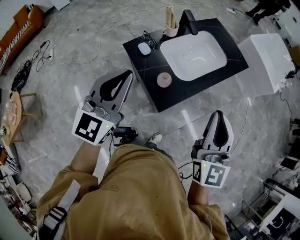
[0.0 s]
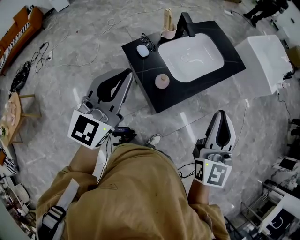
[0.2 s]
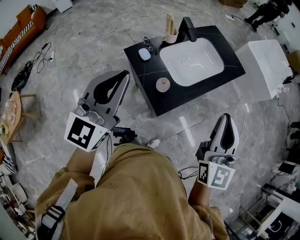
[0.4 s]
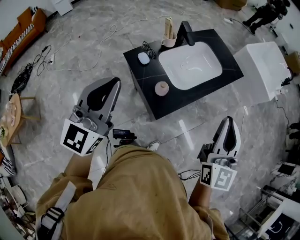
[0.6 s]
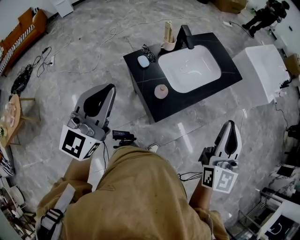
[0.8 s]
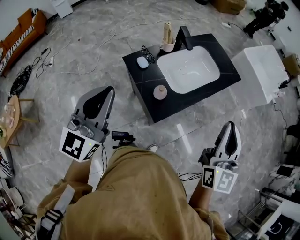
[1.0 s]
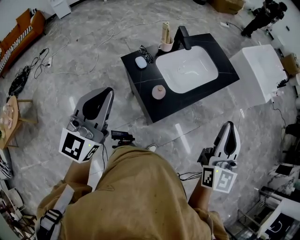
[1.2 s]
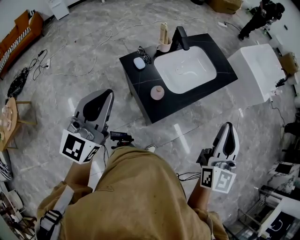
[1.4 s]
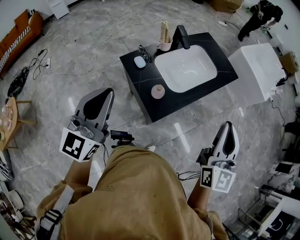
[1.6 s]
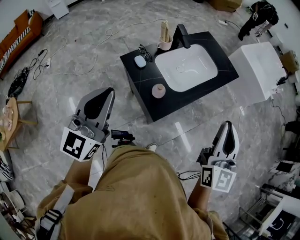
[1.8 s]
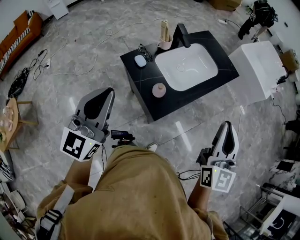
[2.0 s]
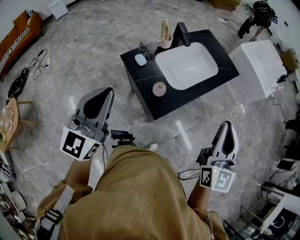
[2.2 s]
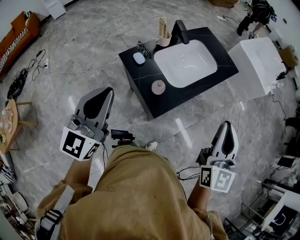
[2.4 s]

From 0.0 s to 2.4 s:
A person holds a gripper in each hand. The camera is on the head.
From 0.0 s to 1.2 s: The right gripper shifts roughly 5 cm to the right; the left gripper shifts by about 5 cm.
From 1.2 s to 2.4 s: The grippers move only a little.

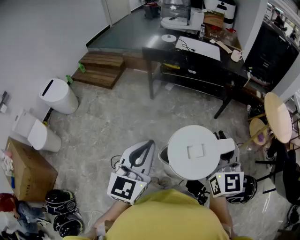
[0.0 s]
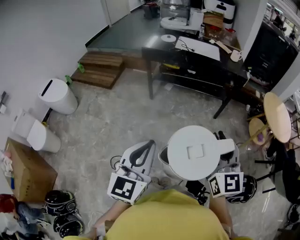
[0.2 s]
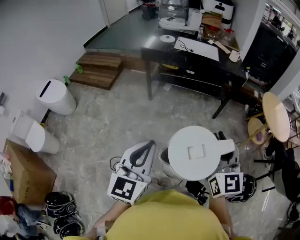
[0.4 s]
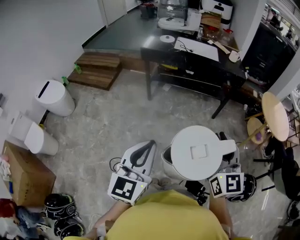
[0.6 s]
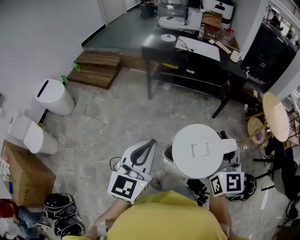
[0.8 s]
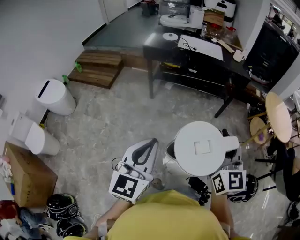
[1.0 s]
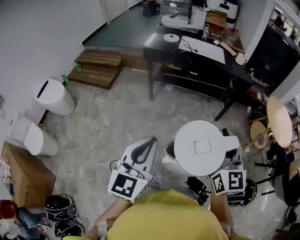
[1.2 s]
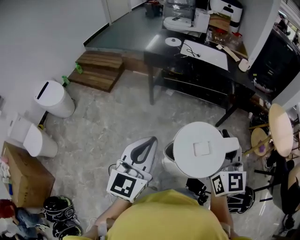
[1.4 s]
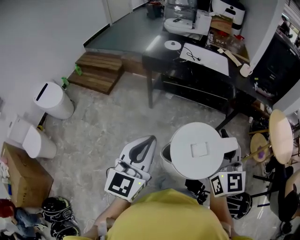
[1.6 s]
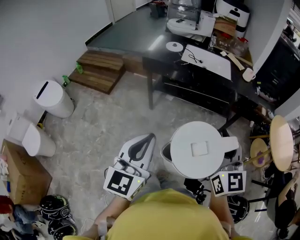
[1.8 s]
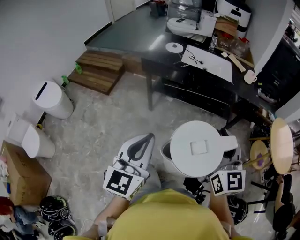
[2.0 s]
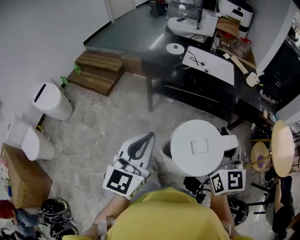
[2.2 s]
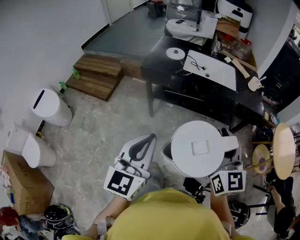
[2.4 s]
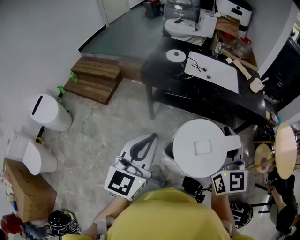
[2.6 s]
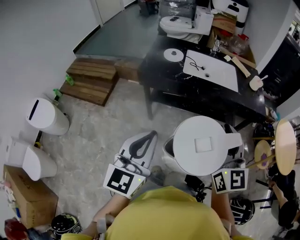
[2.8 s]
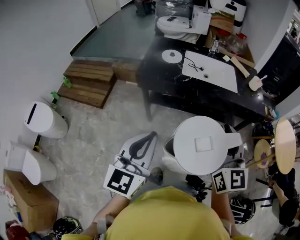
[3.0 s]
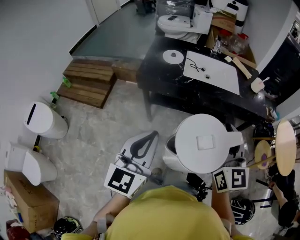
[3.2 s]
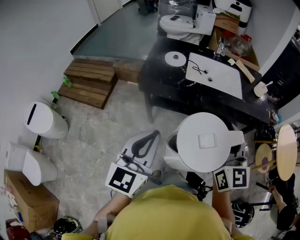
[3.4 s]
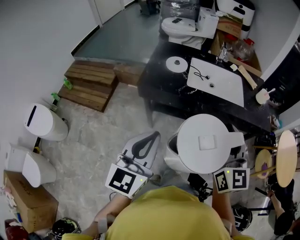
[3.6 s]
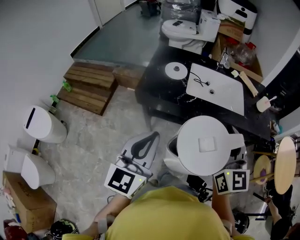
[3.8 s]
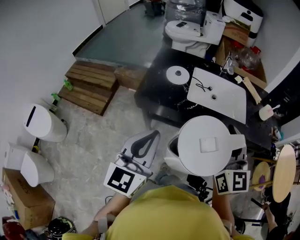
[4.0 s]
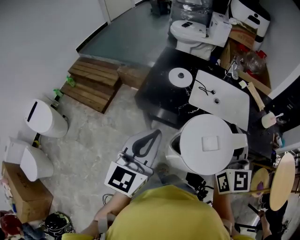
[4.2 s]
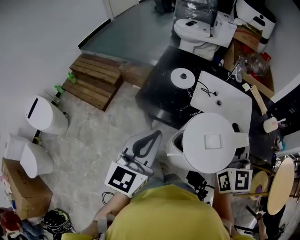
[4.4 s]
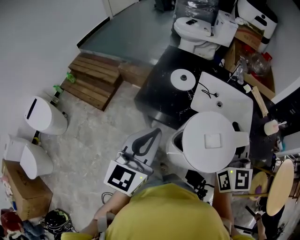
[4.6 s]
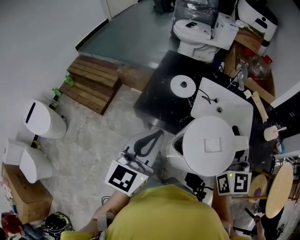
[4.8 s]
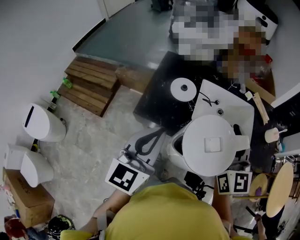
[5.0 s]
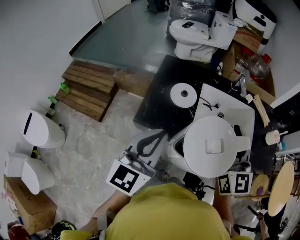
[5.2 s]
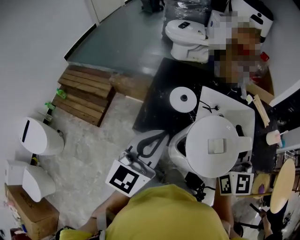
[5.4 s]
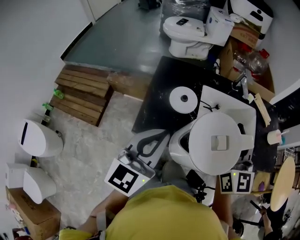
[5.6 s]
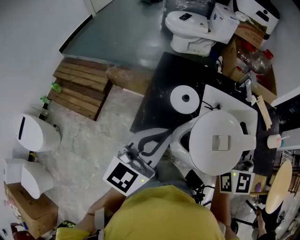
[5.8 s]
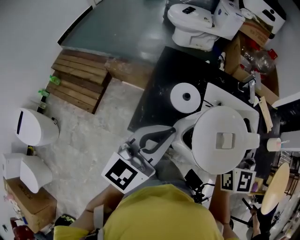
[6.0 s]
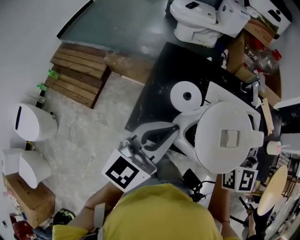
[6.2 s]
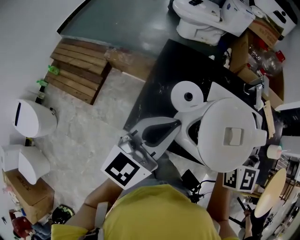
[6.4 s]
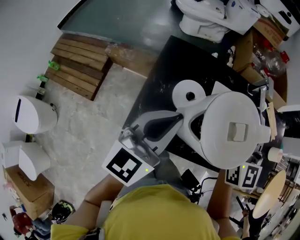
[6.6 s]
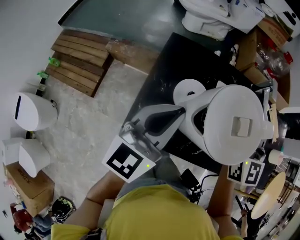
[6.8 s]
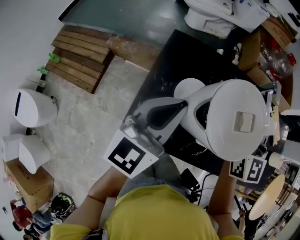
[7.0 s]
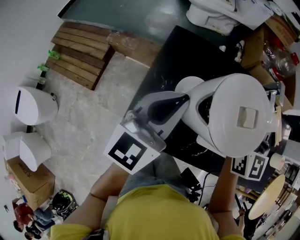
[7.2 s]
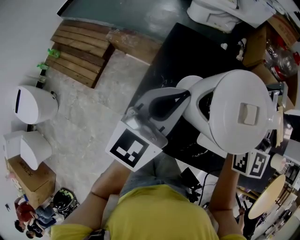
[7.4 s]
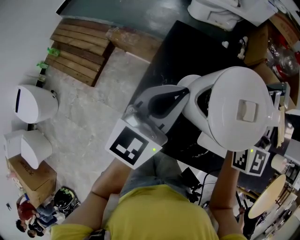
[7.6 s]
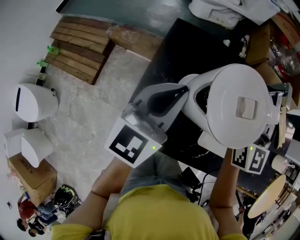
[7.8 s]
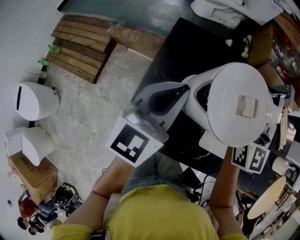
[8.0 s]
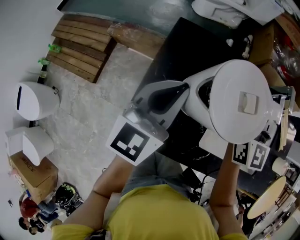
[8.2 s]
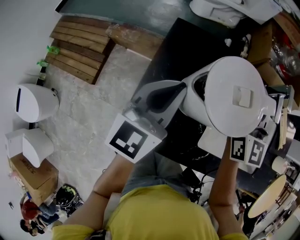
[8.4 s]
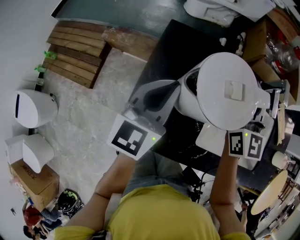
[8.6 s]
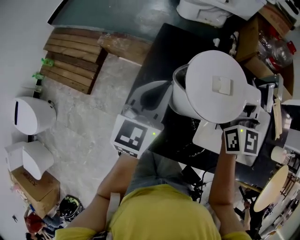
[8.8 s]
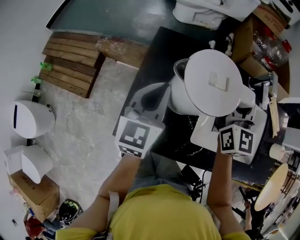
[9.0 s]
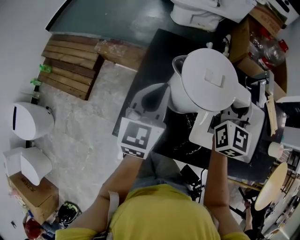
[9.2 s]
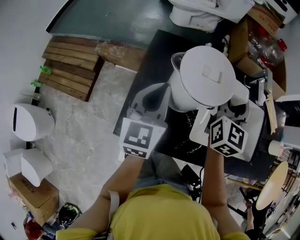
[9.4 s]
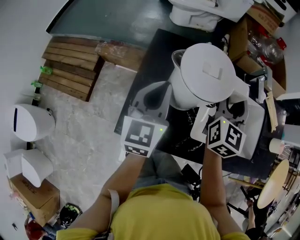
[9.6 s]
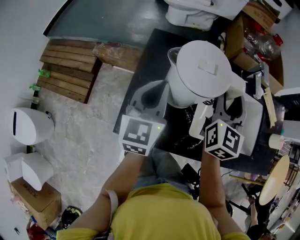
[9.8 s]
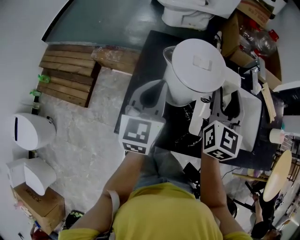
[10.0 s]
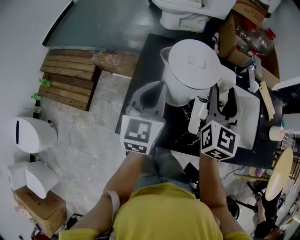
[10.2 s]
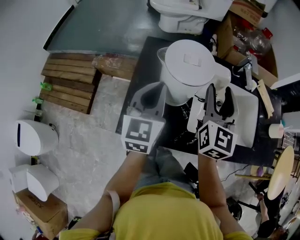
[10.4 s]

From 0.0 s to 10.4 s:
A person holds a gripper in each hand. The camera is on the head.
From 0.0 s to 1.4 s: The two grippers go about 15 cm forward.
From 1.4 s to 3.0 s: The grippers both shift forward by about 30 cm.
From 3.0 s to 4.4 s: The two grippers go approximately 25 cm forward.
From 4.4 s to 6.0 s: The grippers both shift forward by about 20 cm.
From 6.0 s to 7.4 s: The left gripper shifts approximately 15 cm forward and downward. The right gripper heads forward, covering roughly 15 cm.
From 7.4 s to 9.0 s: The grippers both shift downward by some 5 cm. The right gripper opens.
From 9.0 s to 10.4 s: The right gripper travels backward by approximately 10 cm; the left gripper shifts by about 5 cm.

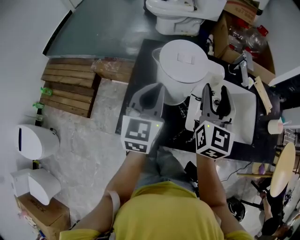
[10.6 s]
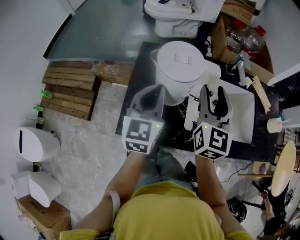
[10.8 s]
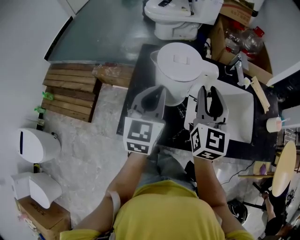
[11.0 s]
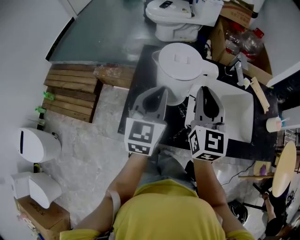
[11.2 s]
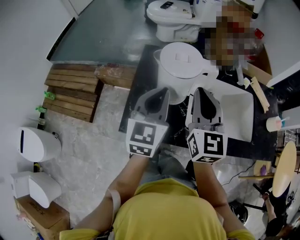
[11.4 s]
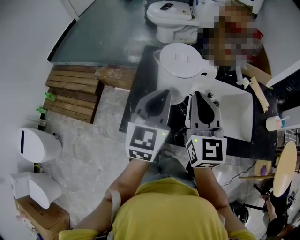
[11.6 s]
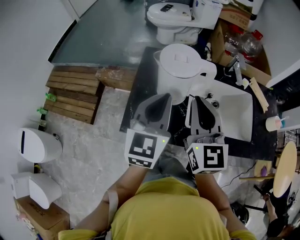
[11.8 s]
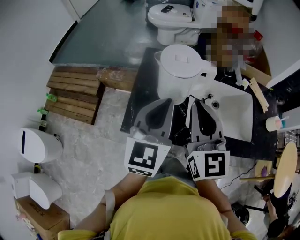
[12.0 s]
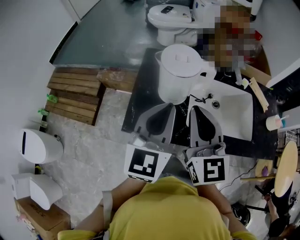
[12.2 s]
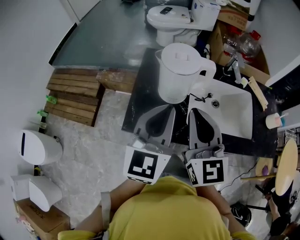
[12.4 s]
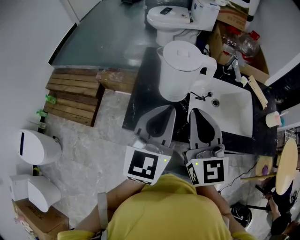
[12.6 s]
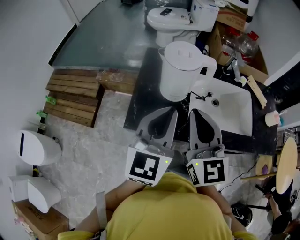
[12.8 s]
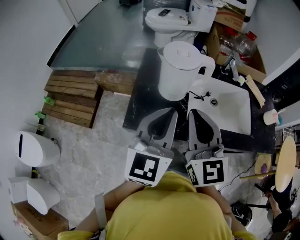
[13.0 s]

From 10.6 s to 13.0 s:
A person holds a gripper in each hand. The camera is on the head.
From 10.6 s to 11.8 s: The right gripper shifts roughly 10 cm backward and to the left, and closes, while the left gripper heads backward and upward, covering roughly 10 cm.
From 11.8 s to 13.0 s: Both grippers travel together backward, some 10 cm.

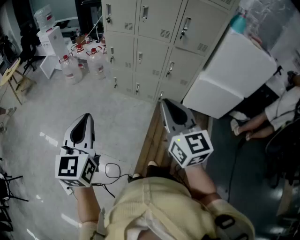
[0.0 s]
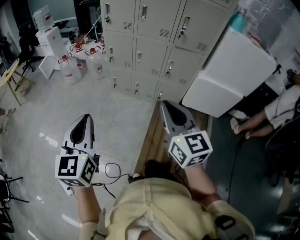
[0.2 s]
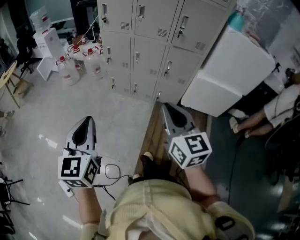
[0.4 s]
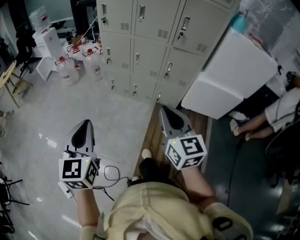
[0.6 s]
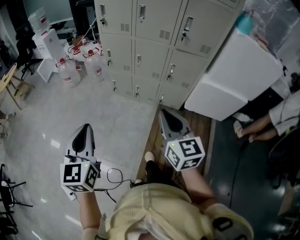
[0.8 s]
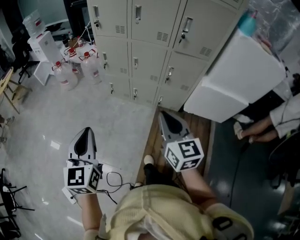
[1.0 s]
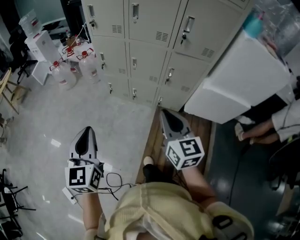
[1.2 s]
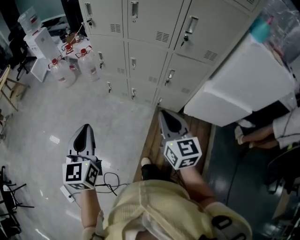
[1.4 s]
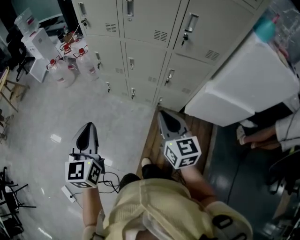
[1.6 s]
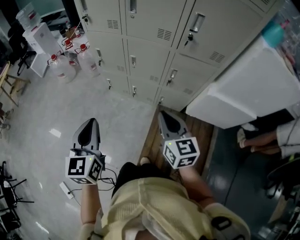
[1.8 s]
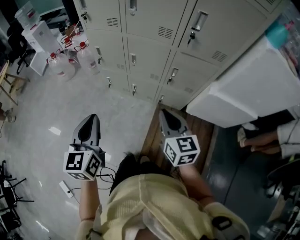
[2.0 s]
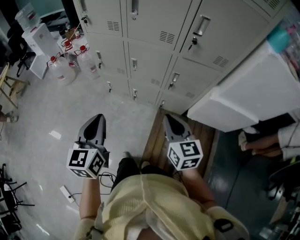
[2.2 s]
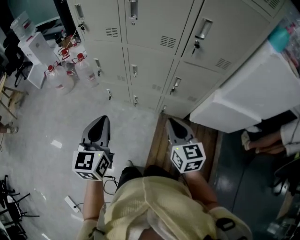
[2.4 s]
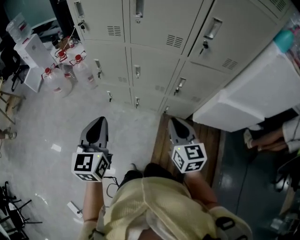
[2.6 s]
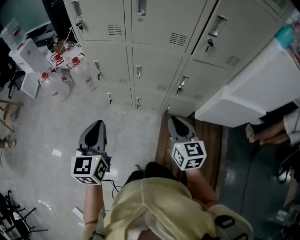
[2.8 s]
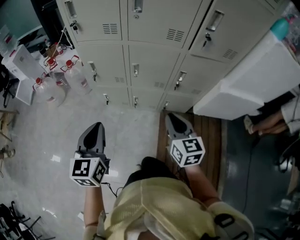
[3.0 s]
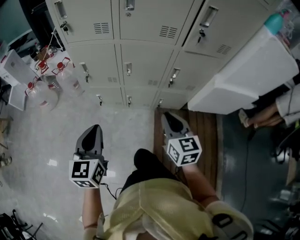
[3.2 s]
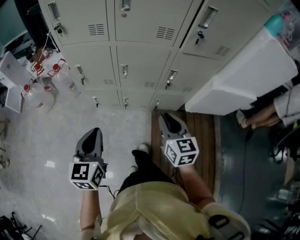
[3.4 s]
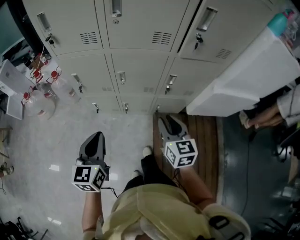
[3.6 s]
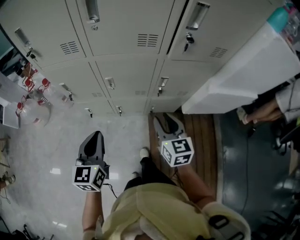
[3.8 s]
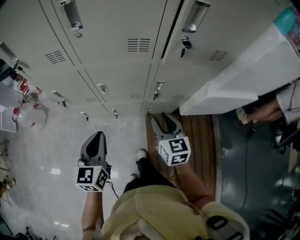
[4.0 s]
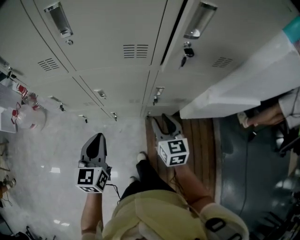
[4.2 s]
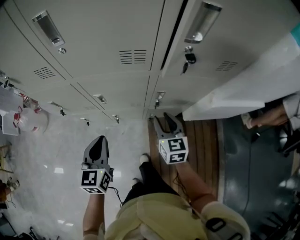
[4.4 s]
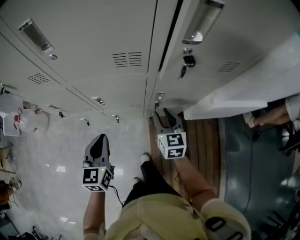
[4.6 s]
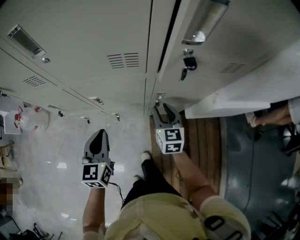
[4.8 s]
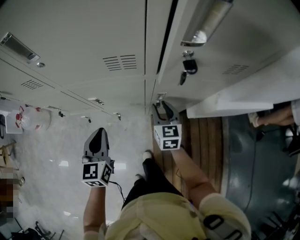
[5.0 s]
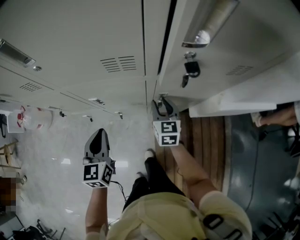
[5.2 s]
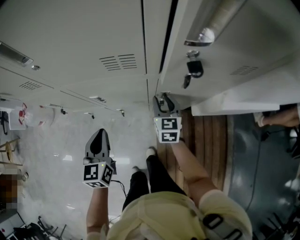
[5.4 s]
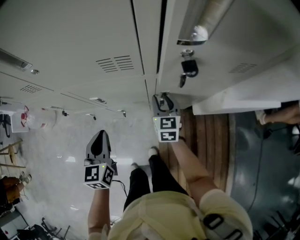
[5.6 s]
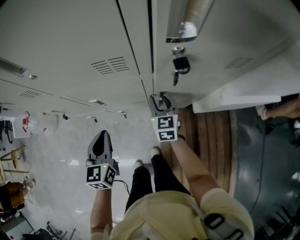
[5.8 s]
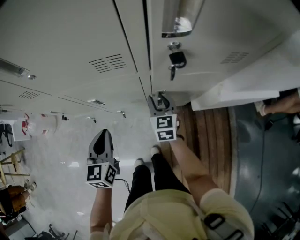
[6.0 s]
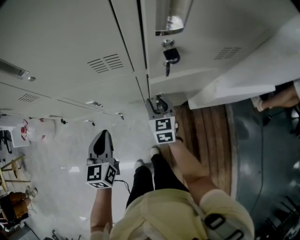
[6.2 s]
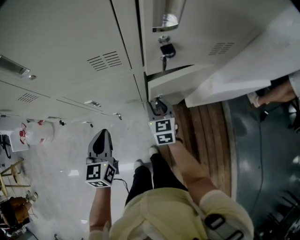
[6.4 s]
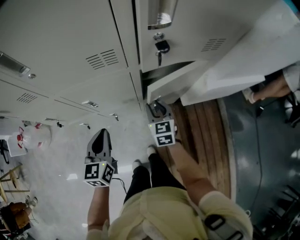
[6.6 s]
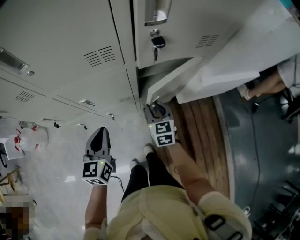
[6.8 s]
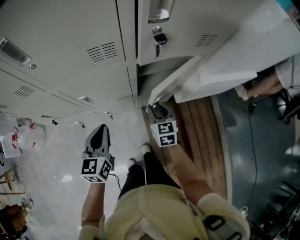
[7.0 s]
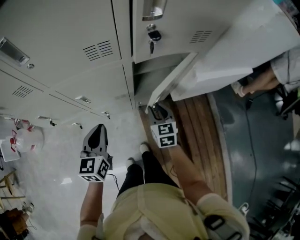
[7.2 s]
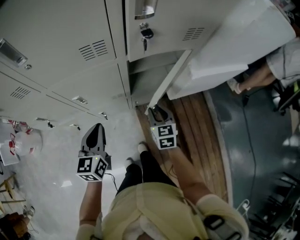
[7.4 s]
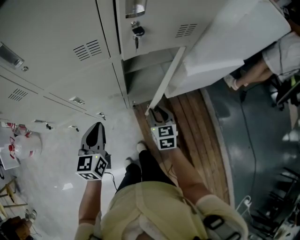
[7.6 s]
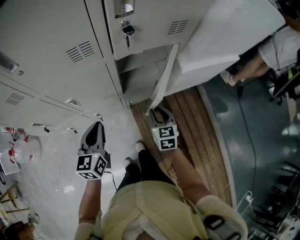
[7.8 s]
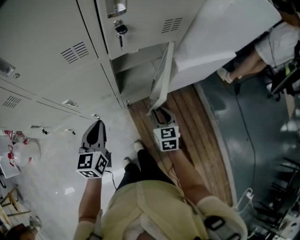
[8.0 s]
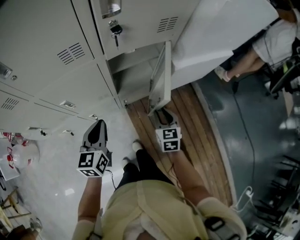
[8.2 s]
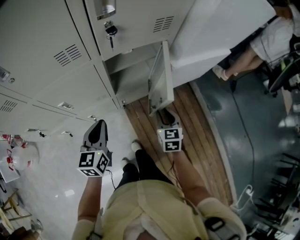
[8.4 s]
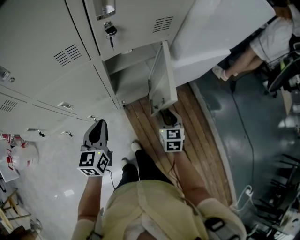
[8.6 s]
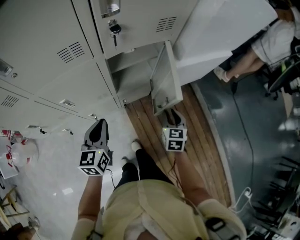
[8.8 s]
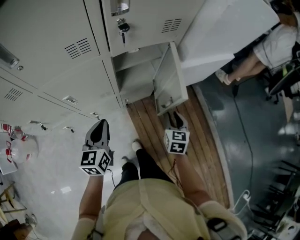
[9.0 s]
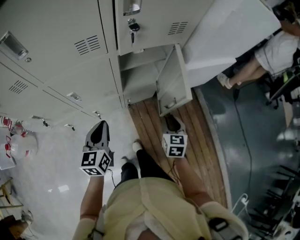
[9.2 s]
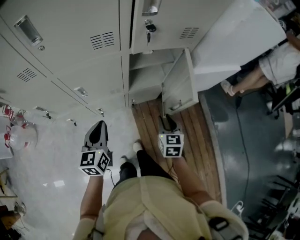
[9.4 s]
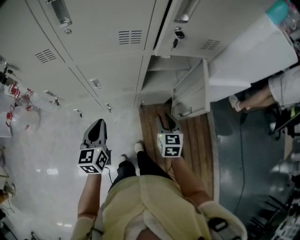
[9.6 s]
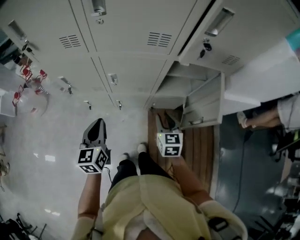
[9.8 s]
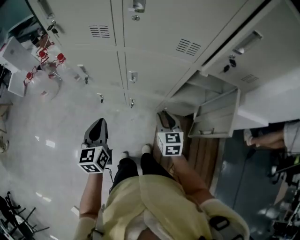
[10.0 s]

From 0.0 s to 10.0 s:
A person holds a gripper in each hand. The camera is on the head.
From 0.0 s to 1.4 s: The right gripper heads forward and downward, covering roughly 25 cm; the left gripper moves forward, about 20 cm.
From 1.4 s to 2.8 s: The grippers both shift forward and downward by about 20 cm.
From 2.8 s to 4.2 s: Both grippers travel together forward, downward and to the right, some 25 cm. The right gripper opens.
From 4.2 s to 5.8 s: The right gripper shifts roughly 15 cm forward and downward; the left gripper travels forward by approximately 10 cm.
From 5.8 s to 7.2 s: The right gripper is displaced backward and to the right by approximately 15 cm.
From 7.2 s to 8.6 s: The left gripper moves to the right, approximately 10 cm. Meanwhile the right gripper goes approximately 15 cm to the right and backward.
From 8.6 s to 10.0 s: The left gripper changes place by roughly 25 cm, and rotates approximately 40 degrees, while the right gripper moves approximately 25 cm, and swivels roughly 40 degrees.
